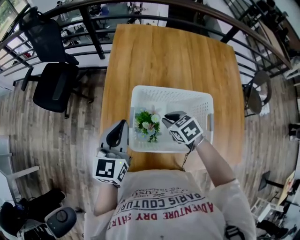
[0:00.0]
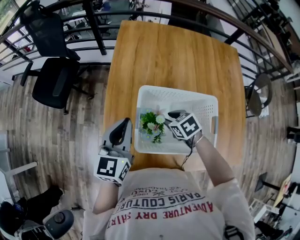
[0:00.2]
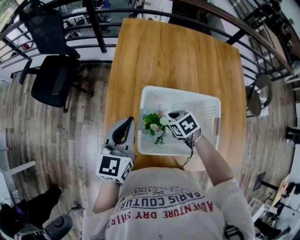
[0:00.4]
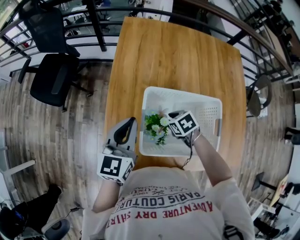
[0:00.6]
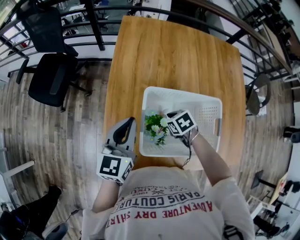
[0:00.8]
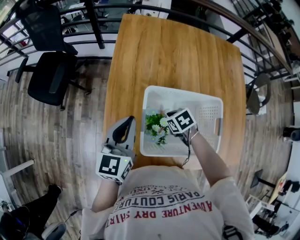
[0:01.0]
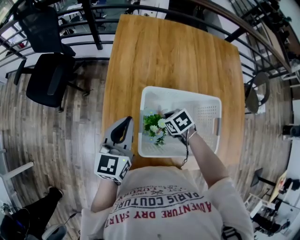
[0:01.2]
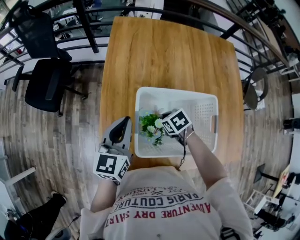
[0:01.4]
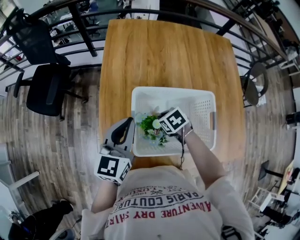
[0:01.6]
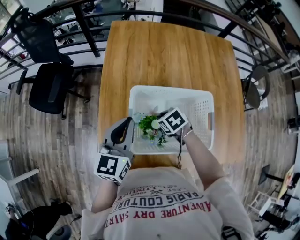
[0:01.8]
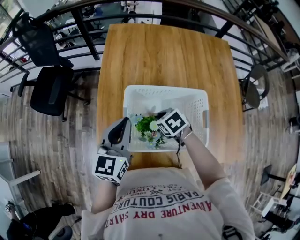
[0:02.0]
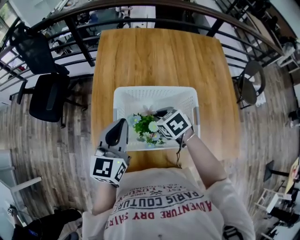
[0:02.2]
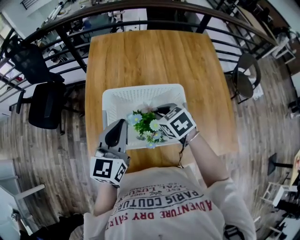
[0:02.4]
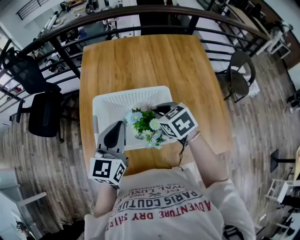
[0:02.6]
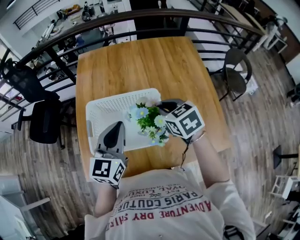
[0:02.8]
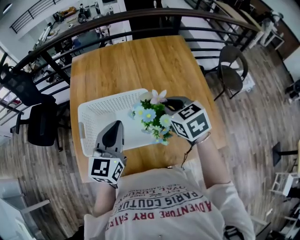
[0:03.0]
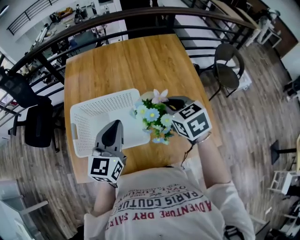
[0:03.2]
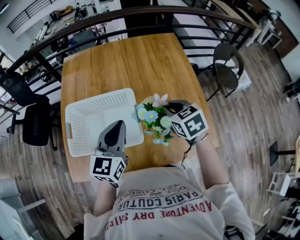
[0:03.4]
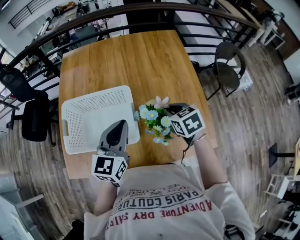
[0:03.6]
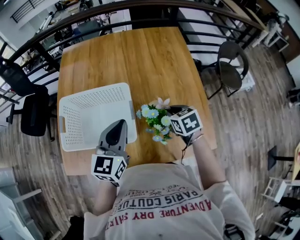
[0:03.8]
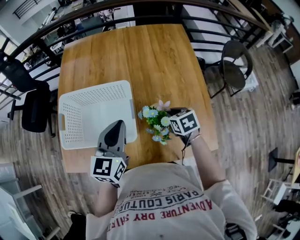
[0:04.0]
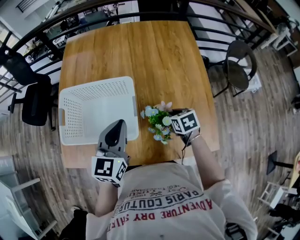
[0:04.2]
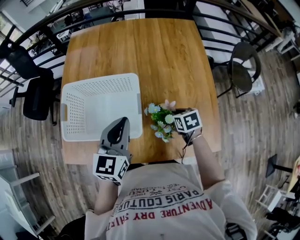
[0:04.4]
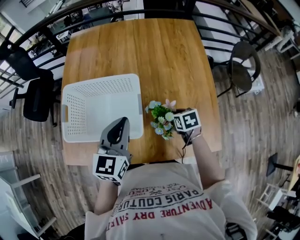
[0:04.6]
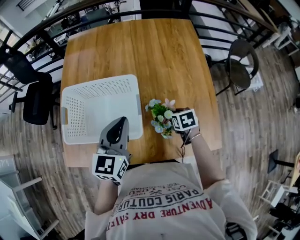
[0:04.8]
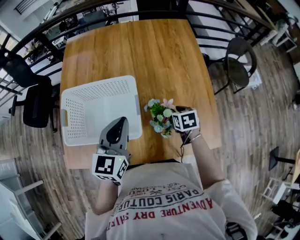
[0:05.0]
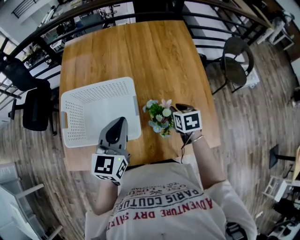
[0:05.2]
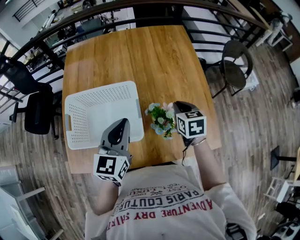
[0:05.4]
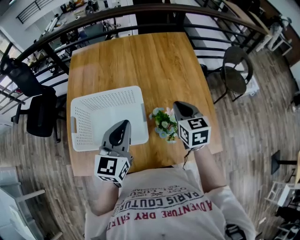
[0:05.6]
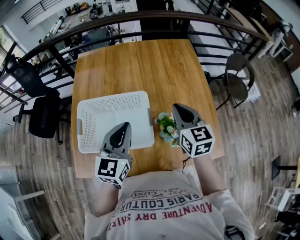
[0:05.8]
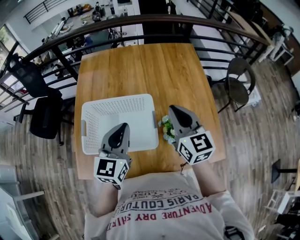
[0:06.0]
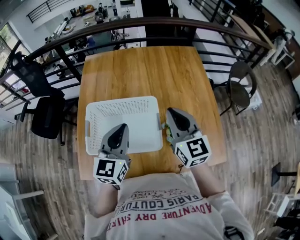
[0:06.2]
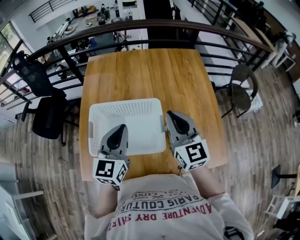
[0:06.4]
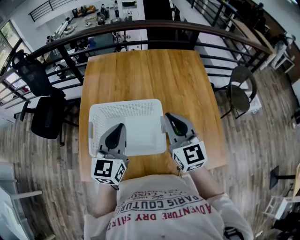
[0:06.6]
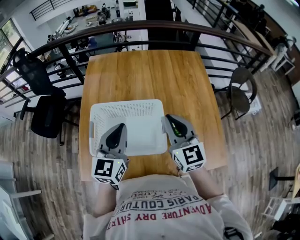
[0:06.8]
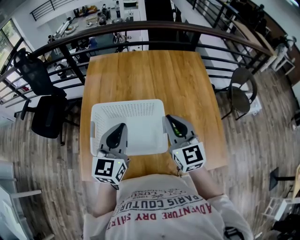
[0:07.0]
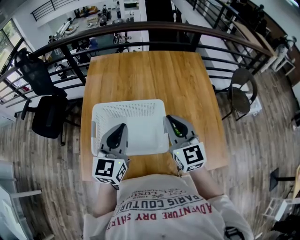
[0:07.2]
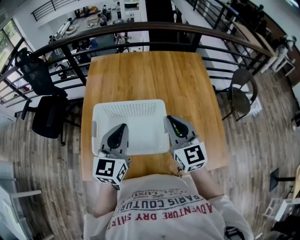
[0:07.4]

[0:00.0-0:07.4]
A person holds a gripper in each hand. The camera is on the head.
0:00.0 to 0:01.4: The right gripper heads downward, covering roughly 10 cm.
0:01.4 to 0:03.0: The left gripper moves roughly 25 cm; the right gripper moves upward, some 25 cm, and changes its angle by about 40 degrees.
0:03.0 to 0:04.4: The left gripper heads to the right and downward, covering some 10 cm; the right gripper moves downward and to the right, some 30 cm, and rotates about 30 degrees.
0:04.4 to 0:06.0: The left gripper goes approximately 10 cm upward and to the left. The right gripper moves upward, approximately 30 cm, and angles its fingers upward, by approximately 50 degrees.
0:06.0 to 0:07.4: Both grippers travel together to the left, some 5 cm.

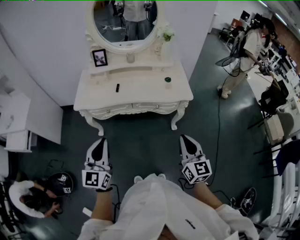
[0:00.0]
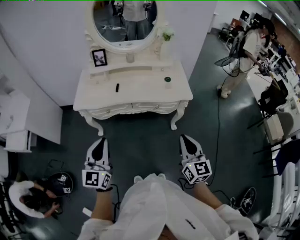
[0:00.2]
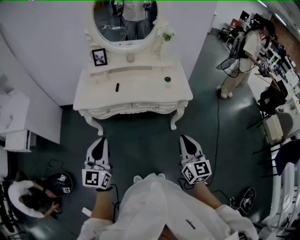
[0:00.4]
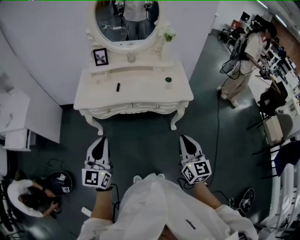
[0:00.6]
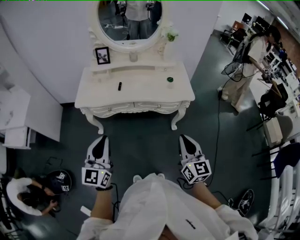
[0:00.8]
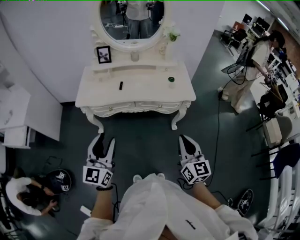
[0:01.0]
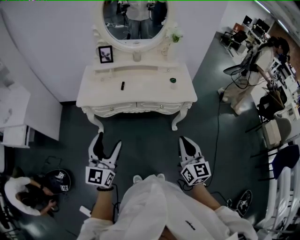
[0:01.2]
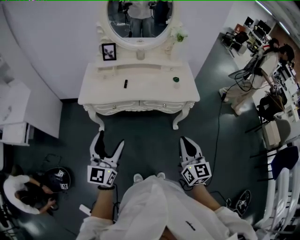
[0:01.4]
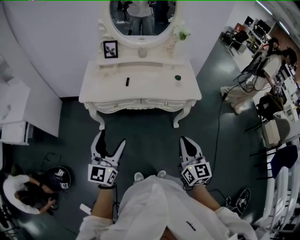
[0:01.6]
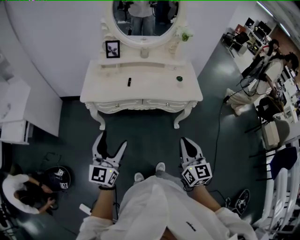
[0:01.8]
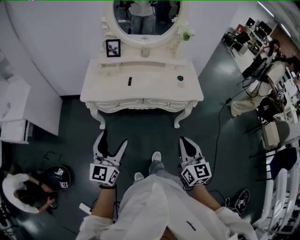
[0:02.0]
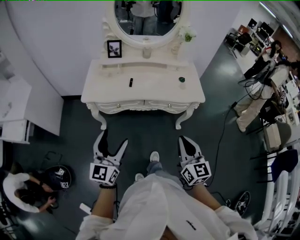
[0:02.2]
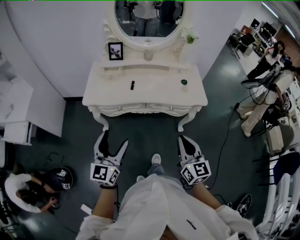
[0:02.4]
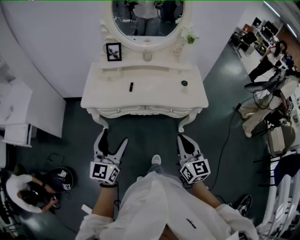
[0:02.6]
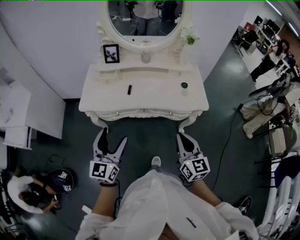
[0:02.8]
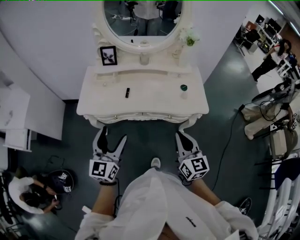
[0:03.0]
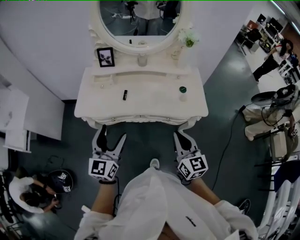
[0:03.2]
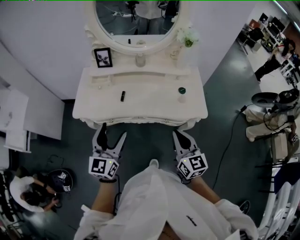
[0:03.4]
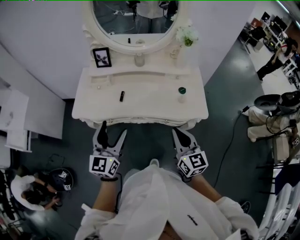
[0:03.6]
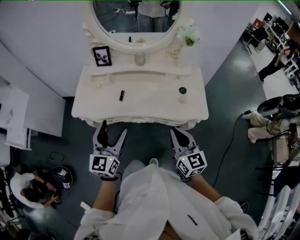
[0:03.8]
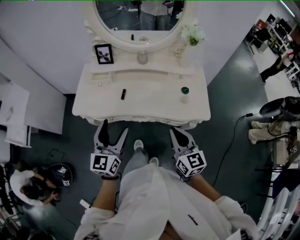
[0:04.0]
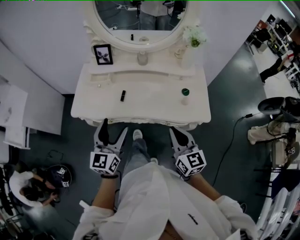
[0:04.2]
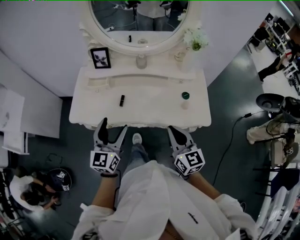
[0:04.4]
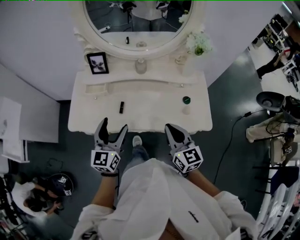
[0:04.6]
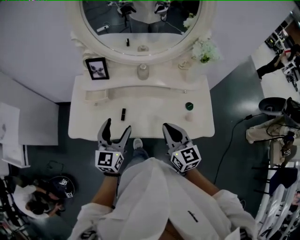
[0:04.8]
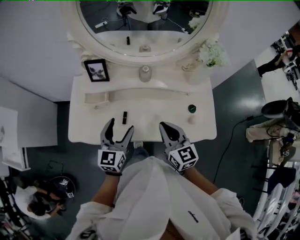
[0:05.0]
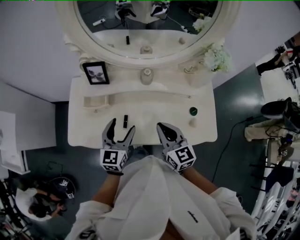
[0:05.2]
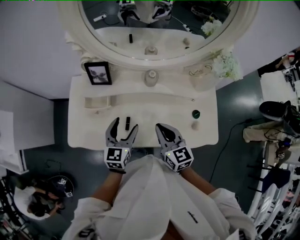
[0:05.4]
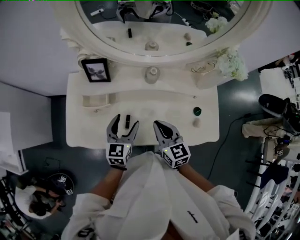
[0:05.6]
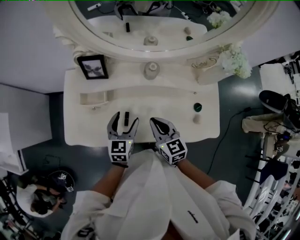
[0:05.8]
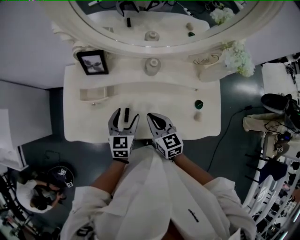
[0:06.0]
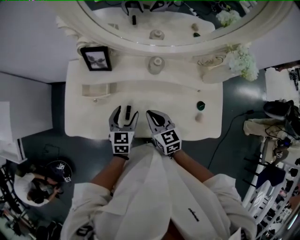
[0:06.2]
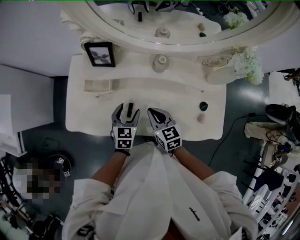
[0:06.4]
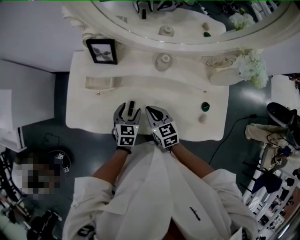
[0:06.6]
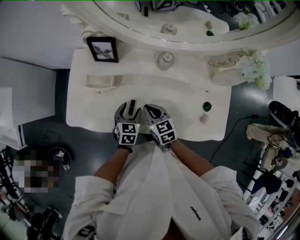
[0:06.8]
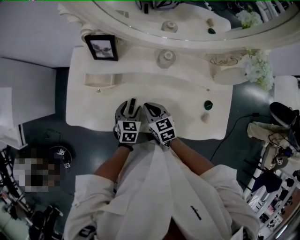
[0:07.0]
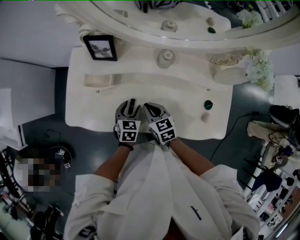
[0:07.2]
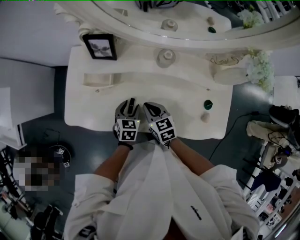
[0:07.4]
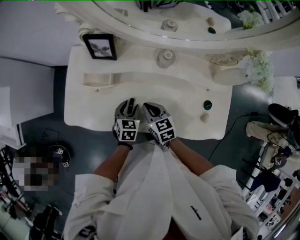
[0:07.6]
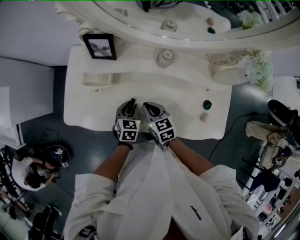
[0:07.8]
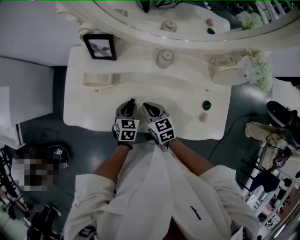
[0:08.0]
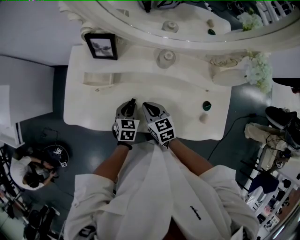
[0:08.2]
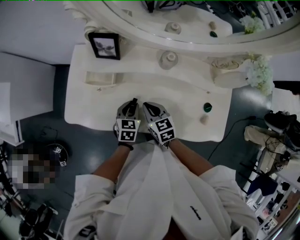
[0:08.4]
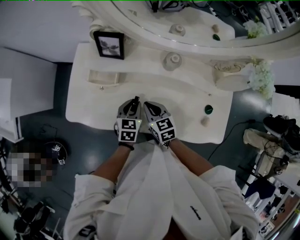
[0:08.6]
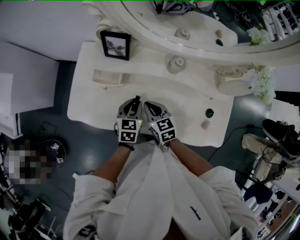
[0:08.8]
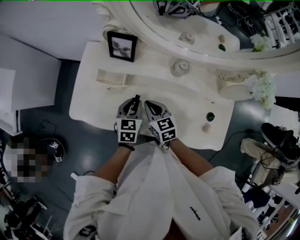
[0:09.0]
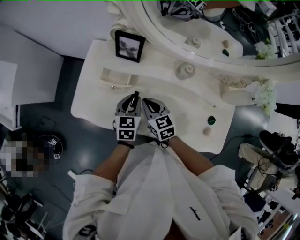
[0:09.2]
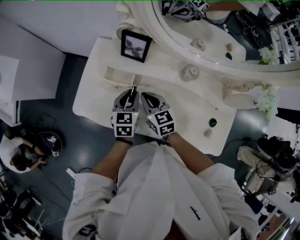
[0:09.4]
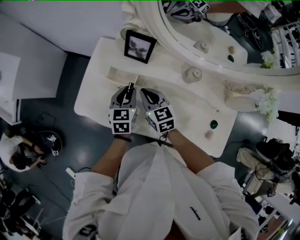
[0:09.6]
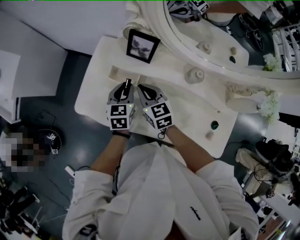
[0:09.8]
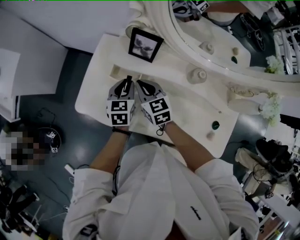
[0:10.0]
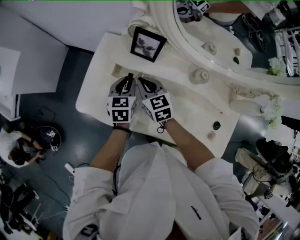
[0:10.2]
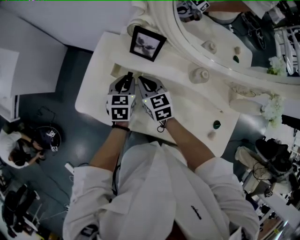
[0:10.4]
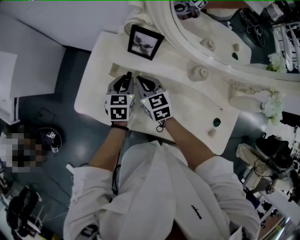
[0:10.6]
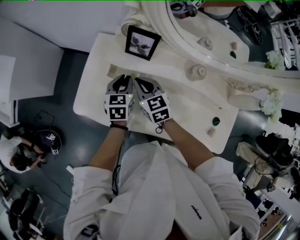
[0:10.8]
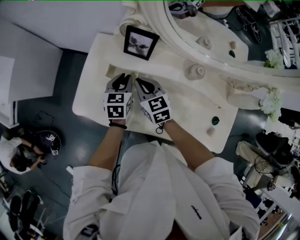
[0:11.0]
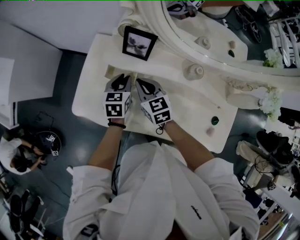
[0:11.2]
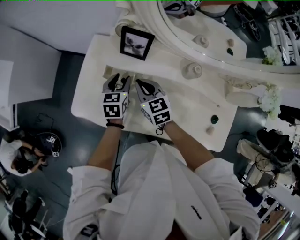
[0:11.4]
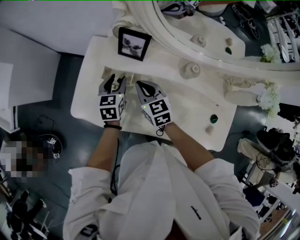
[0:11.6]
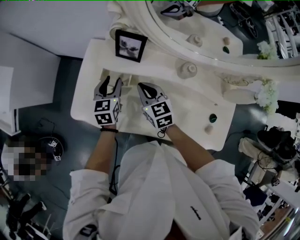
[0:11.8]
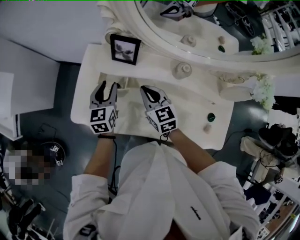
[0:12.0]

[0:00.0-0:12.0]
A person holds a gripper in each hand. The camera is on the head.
0:00.0 to 0:01.6: The left gripper is displaced to the left by roughly 5 cm, and opens up. Meanwhile the right gripper travels to the left by some 10 cm.
0:01.6 to 0:03.0: The grippers both shift forward by approximately 15 cm.
0:03.0 to 0:04.4: The grippers both shift forward by approximately 15 cm.
0:04.4 to 0:06.0: The left gripper moves forward and downward, approximately 30 cm, and rotates some 30 degrees. Meanwhile the right gripper travels forward, downward and to the left by about 30 cm.
0:06.0 to 0:07.6: The two grippers go about 10 cm downward. The left gripper turns by some 20 degrees.
0:07.6 to 0:09.0: The right gripper shifts by some 5 cm. The left gripper shifts approximately 10 cm upward.
0:09.0 to 0:10.4: The two grippers go some 15 cm forward and to the left.
0:10.4 to 0:12.0: The left gripper shifts about 5 cm upward, while the right gripper travels to the right by approximately 5 cm.

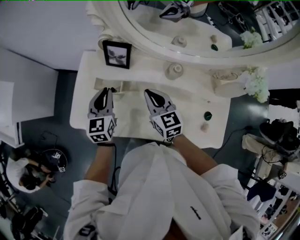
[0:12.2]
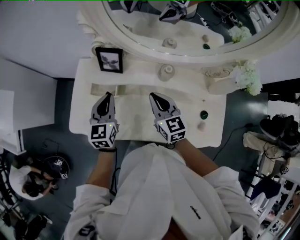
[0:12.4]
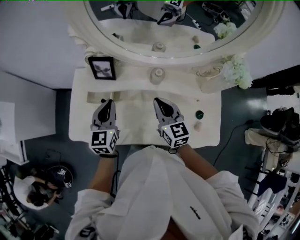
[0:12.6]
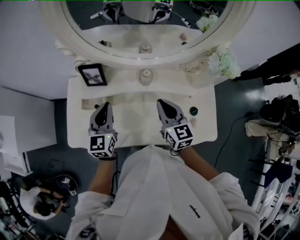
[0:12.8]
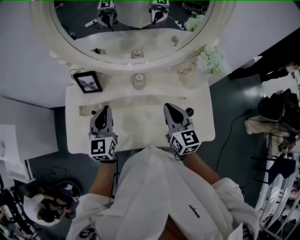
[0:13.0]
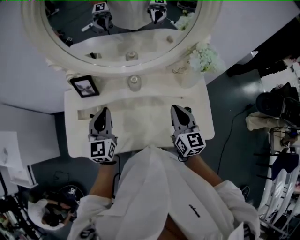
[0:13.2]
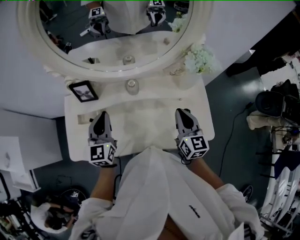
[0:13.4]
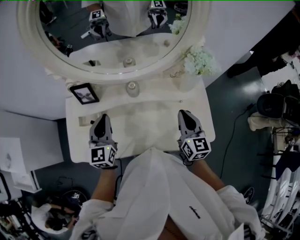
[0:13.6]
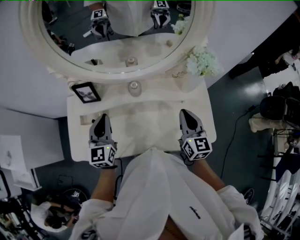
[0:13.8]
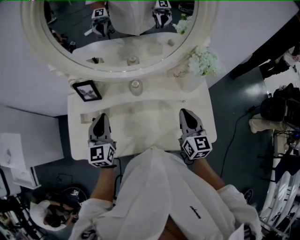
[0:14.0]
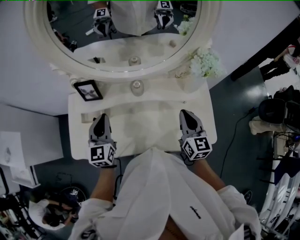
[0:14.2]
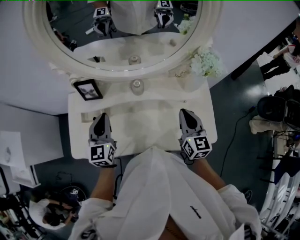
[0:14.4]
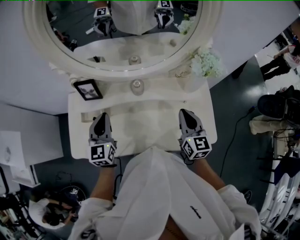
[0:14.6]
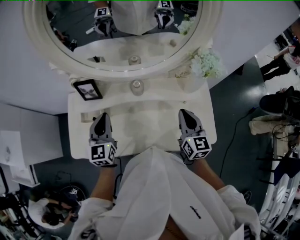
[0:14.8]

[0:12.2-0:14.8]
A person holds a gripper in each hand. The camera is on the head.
0:12.2 to 0:13.4: The right gripper travels to the right by about 30 cm, and swivels some 40 degrees, while the left gripper heads to the right and upward, covering about 20 cm, and swivels approximately 20 degrees.
0:13.4 to 0:14.8: There are only small adjustments of the grippers.

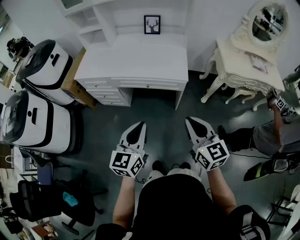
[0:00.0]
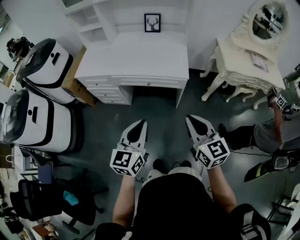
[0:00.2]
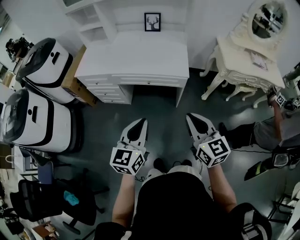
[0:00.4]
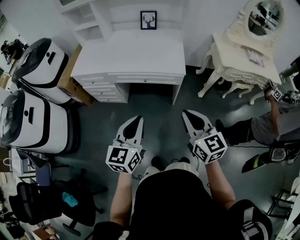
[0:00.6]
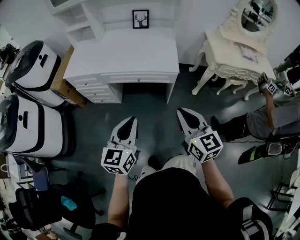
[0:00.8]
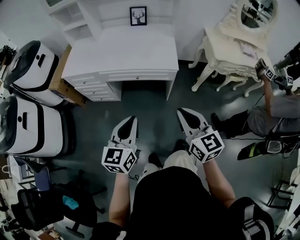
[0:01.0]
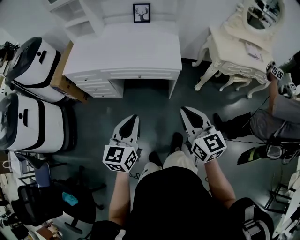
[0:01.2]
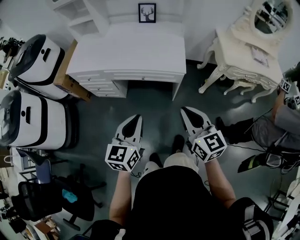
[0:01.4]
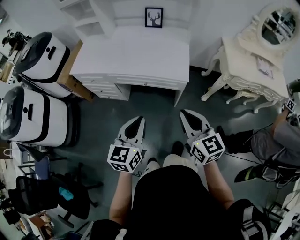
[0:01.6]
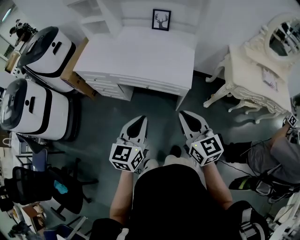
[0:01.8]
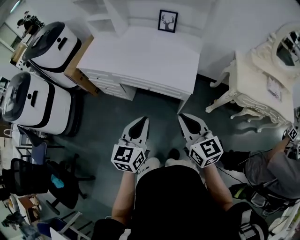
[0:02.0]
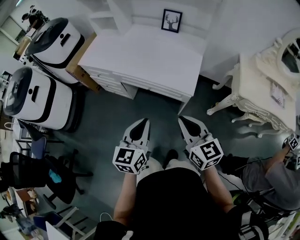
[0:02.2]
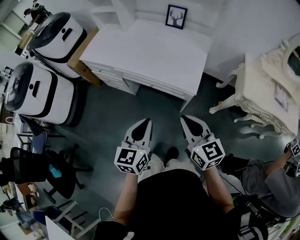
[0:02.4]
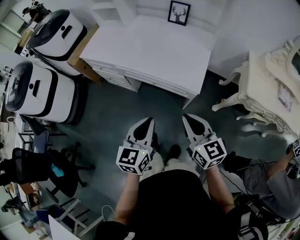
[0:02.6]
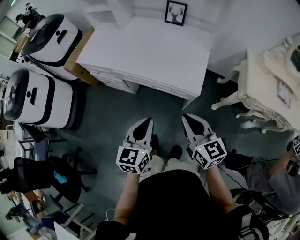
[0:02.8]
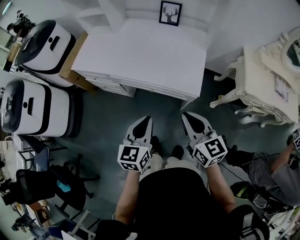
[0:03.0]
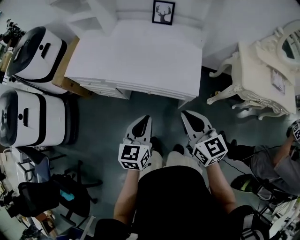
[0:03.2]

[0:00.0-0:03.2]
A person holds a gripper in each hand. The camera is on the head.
0:00.0 to 0:01.6: Both grippers travel together forward, roughly 10 cm.
0:01.6 to 0:03.2: The left gripper heads forward and downward, covering approximately 20 cm. Meanwhile the right gripper moves forward, approximately 20 cm.
